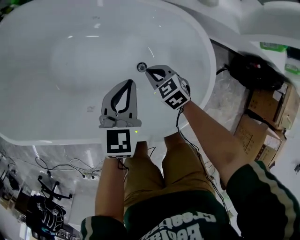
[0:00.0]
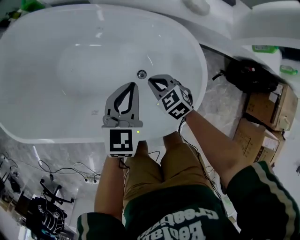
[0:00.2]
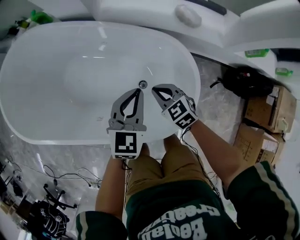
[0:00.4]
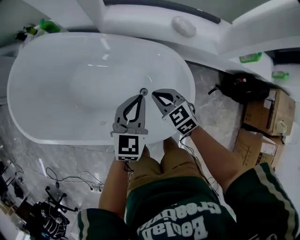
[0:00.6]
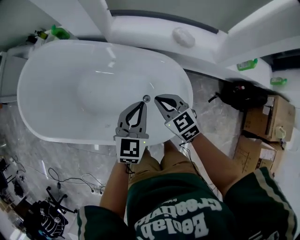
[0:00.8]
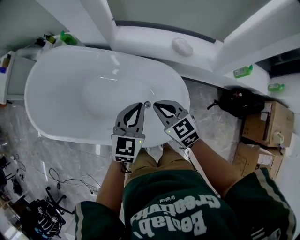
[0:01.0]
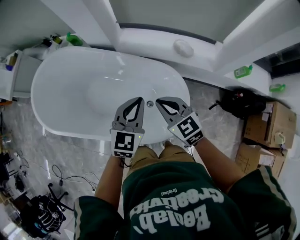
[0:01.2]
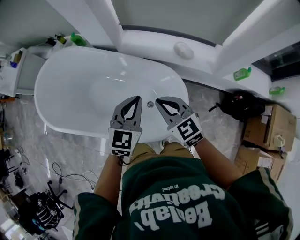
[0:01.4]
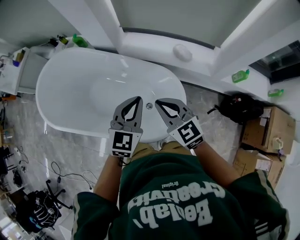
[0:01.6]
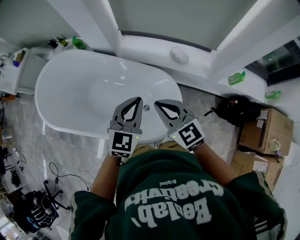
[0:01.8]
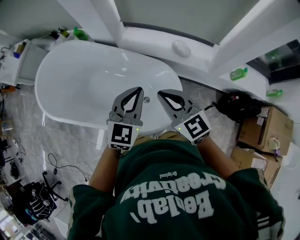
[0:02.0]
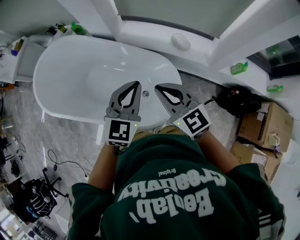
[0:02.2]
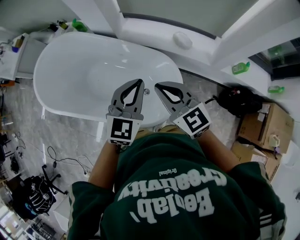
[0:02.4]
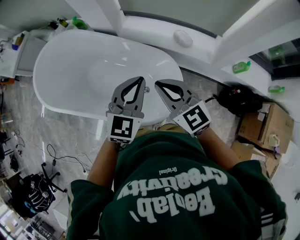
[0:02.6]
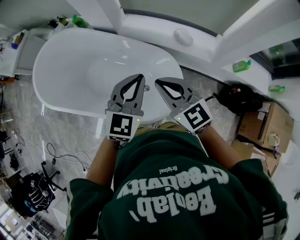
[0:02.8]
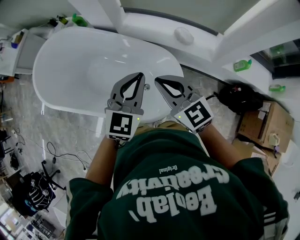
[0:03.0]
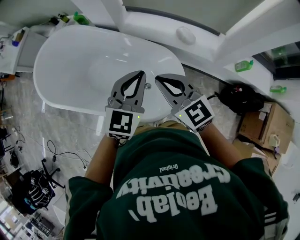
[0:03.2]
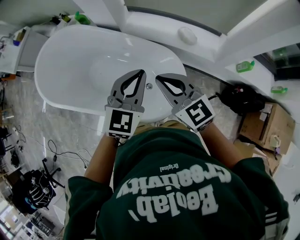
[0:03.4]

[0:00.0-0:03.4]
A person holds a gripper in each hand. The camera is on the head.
0:00.0 to 0:01.6: The grippers both shift upward by approximately 40 cm. The right gripper points its fingers approximately 30 degrees further upward.
0:01.6 to 0:03.4: The right gripper is displaced upward by some 5 cm.

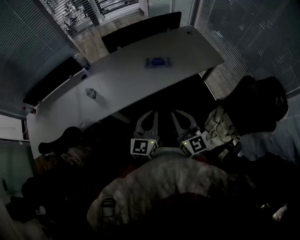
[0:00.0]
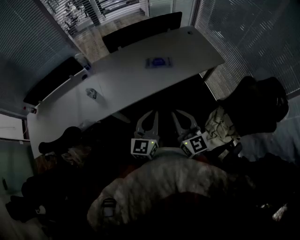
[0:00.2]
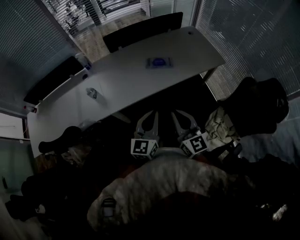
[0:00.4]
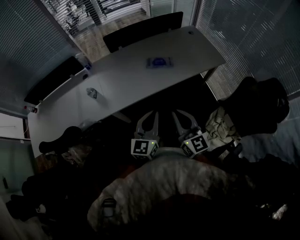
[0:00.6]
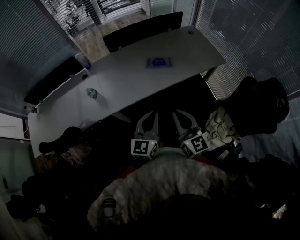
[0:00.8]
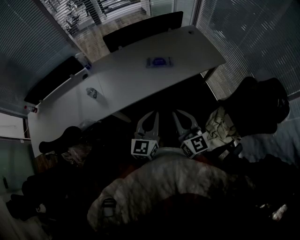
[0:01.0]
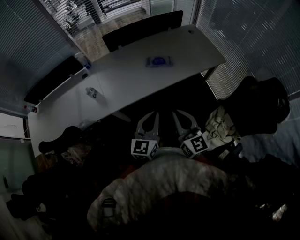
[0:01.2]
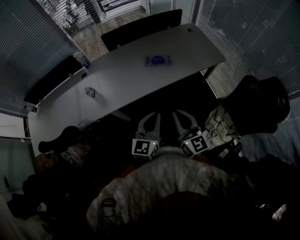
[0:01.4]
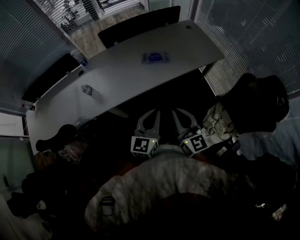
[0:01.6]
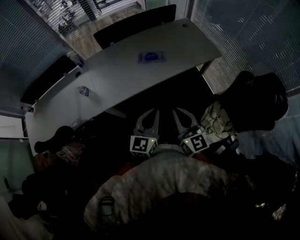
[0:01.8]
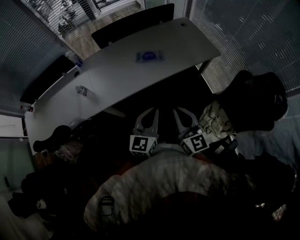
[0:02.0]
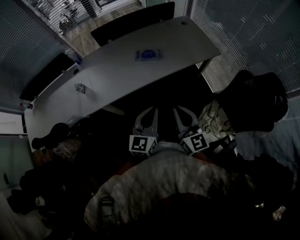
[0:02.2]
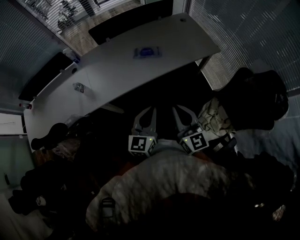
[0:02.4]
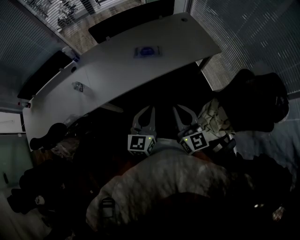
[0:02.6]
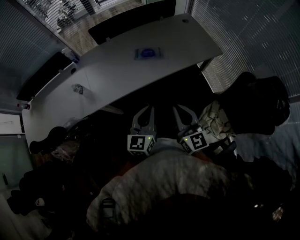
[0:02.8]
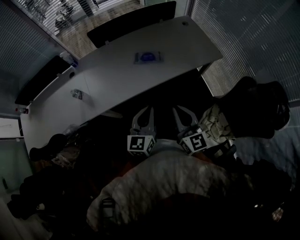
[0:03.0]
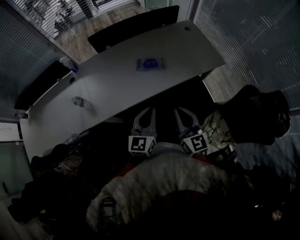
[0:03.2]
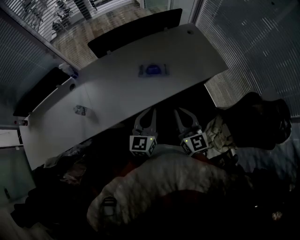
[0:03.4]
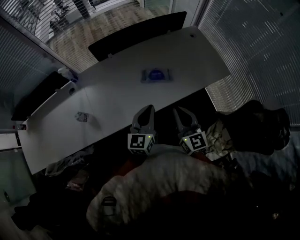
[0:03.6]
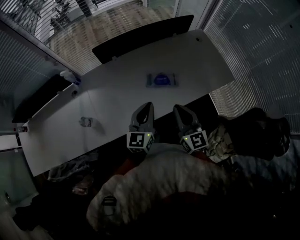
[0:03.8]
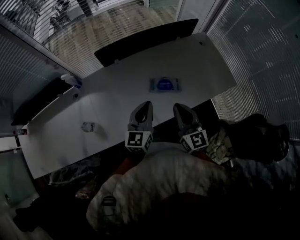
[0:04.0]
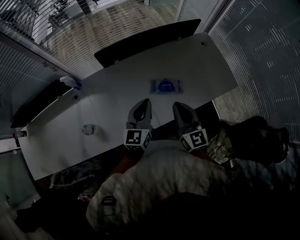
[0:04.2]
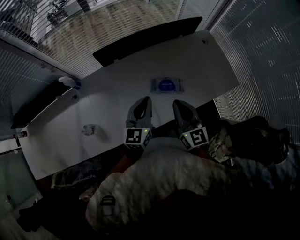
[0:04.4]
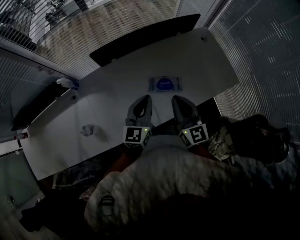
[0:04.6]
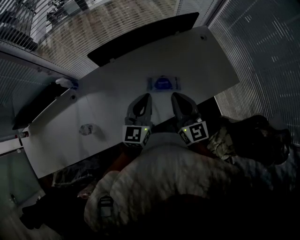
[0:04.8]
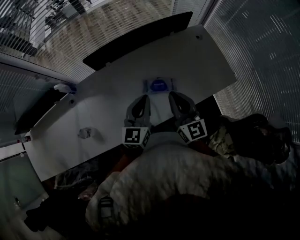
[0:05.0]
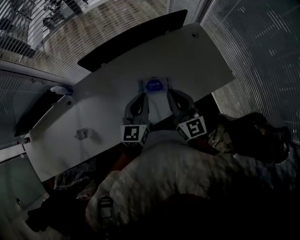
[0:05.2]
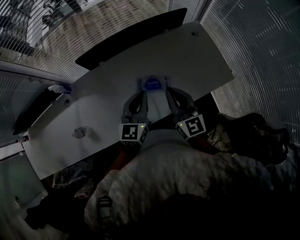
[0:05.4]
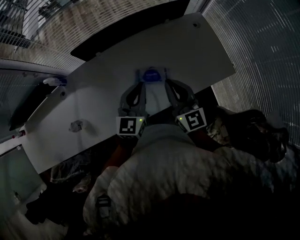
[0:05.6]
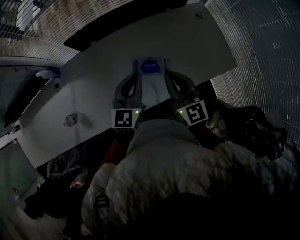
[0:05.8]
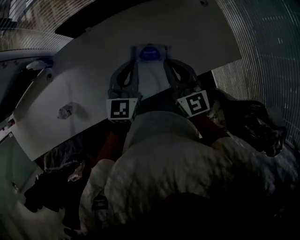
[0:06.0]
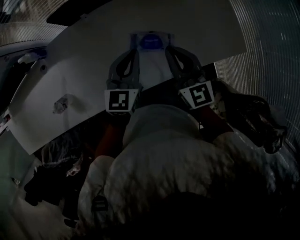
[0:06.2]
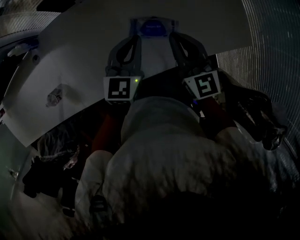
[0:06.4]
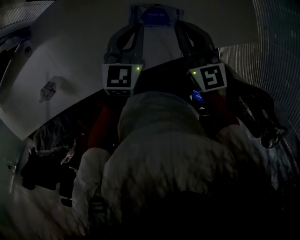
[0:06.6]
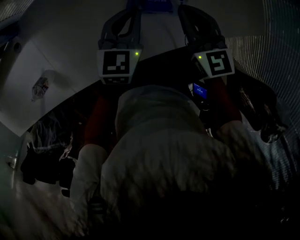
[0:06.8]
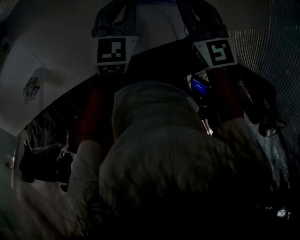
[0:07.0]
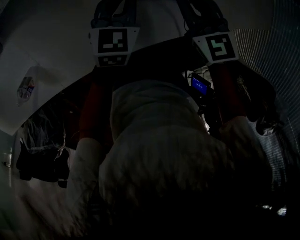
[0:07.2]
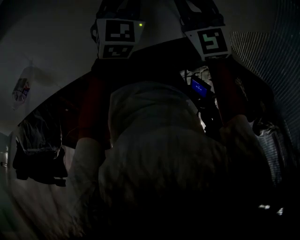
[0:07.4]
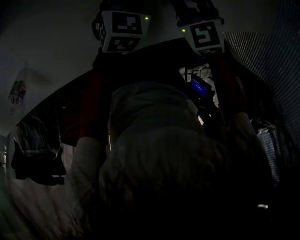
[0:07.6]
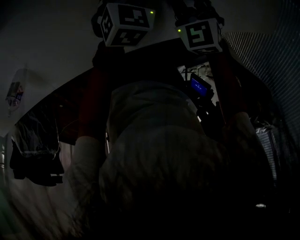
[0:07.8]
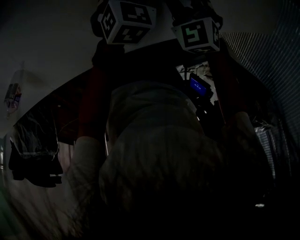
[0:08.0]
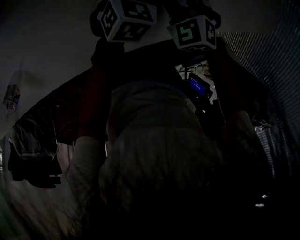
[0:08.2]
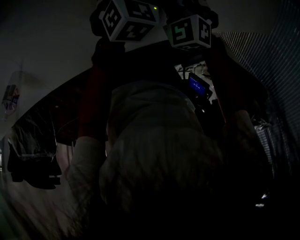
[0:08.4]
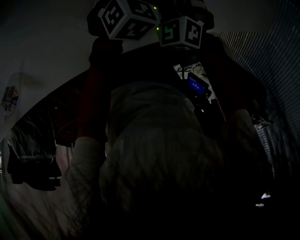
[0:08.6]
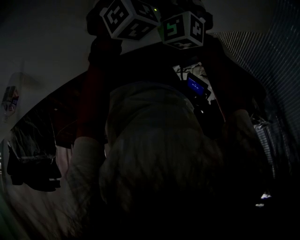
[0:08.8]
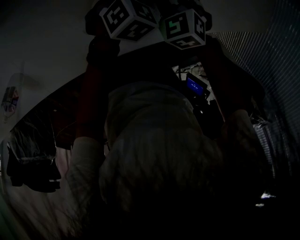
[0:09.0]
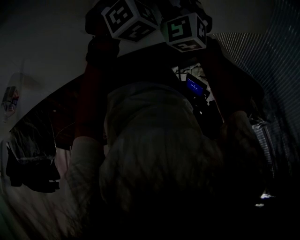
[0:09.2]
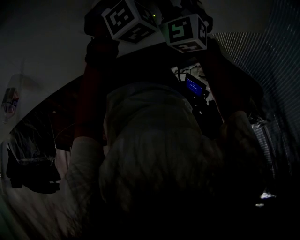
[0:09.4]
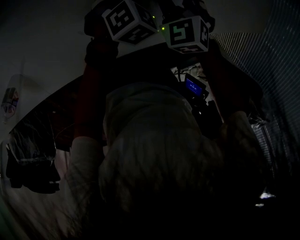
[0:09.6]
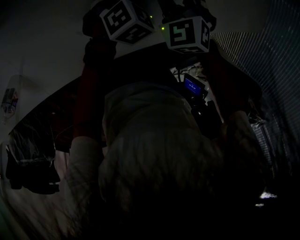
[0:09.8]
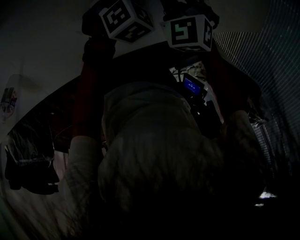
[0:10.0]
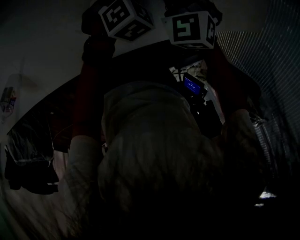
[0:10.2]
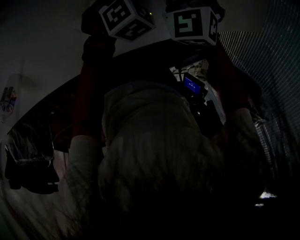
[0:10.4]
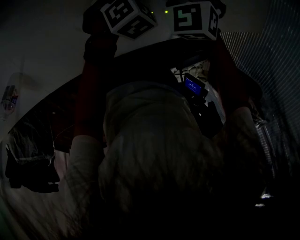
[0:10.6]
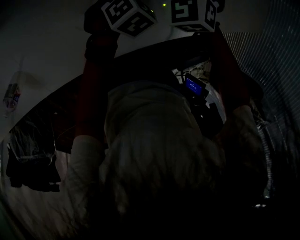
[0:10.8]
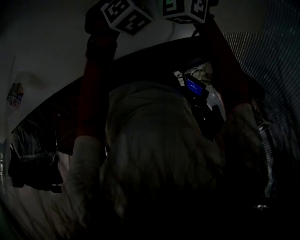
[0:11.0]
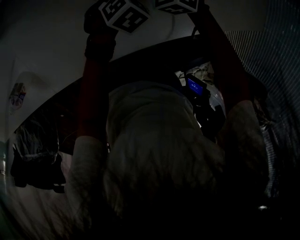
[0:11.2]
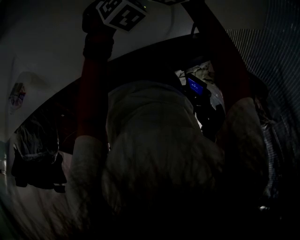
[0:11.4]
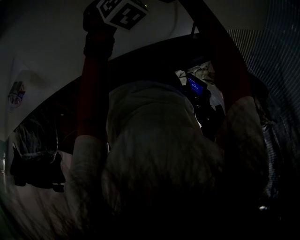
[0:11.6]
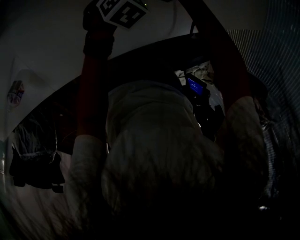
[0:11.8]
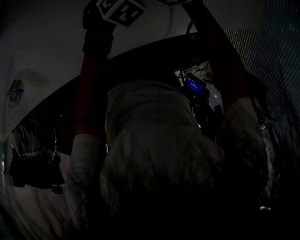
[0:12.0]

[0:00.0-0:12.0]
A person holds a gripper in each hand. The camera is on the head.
0:00.0 to 0:01.6: The grippers stay close to where they were, moving slightly.
0:01.6 to 0:03.0: The left gripper is displaced forward by roughly 5 cm; the right gripper travels forward and to the right by about 10 cm.
0:03.0 to 0:04.4: The right gripper heads forward, covering approximately 30 cm. Meanwhile the left gripper moves forward and to the left, approximately 35 cm.
0:04.4 to 0:06.0: Both grippers travel together forward and to the right, approximately 10 cm.
0:06.0 to 0:07.6: The two grippers go roughly 30 cm downward. The left gripper turns by about 30 degrees; the right gripper tips its fingers downward by some 40 degrees.
0:07.6 to 0:09.0: The right gripper travels downward by some 5 cm. Meanwhile the left gripper changes its angle by about 20 degrees.
0:09.0 to 0:10.4: The right gripper heads upward and forward, covering some 10 cm.
0:10.4 to 0:12.0: The right gripper goes approximately 5 cm forward.

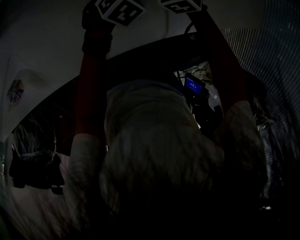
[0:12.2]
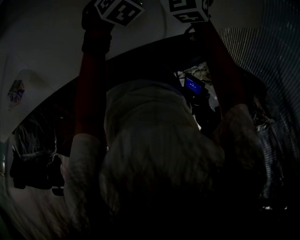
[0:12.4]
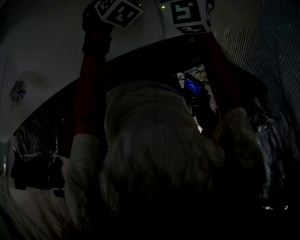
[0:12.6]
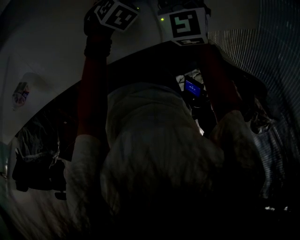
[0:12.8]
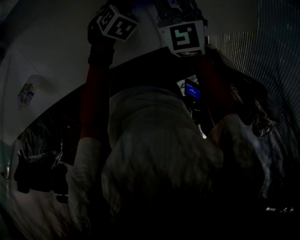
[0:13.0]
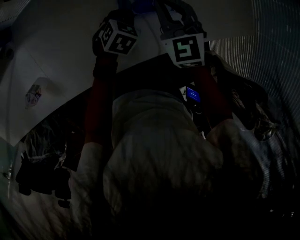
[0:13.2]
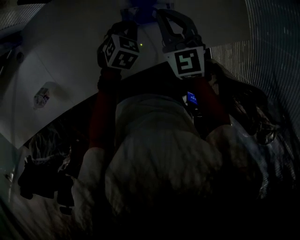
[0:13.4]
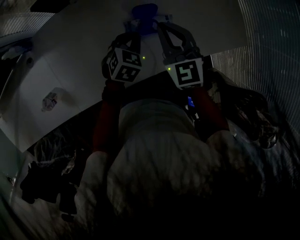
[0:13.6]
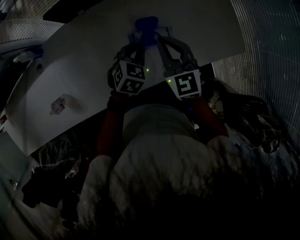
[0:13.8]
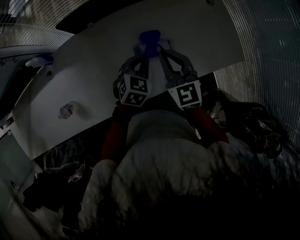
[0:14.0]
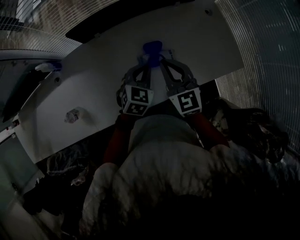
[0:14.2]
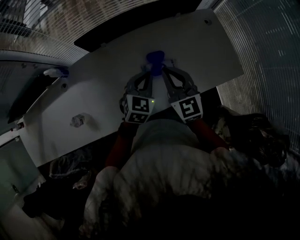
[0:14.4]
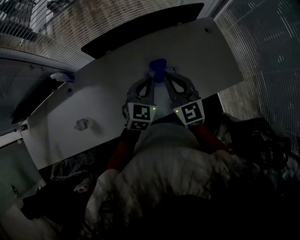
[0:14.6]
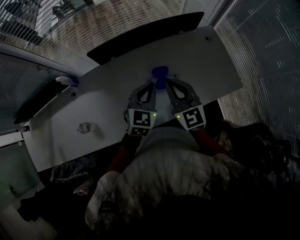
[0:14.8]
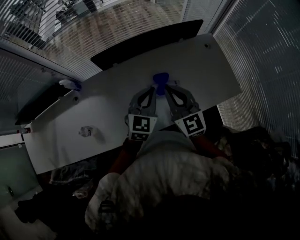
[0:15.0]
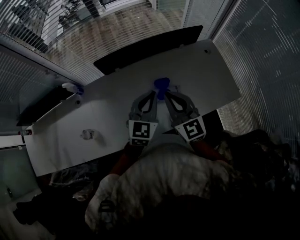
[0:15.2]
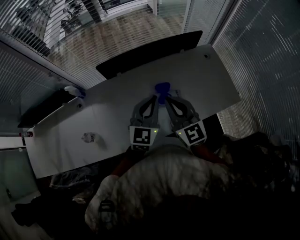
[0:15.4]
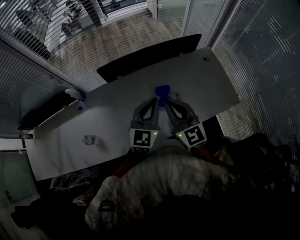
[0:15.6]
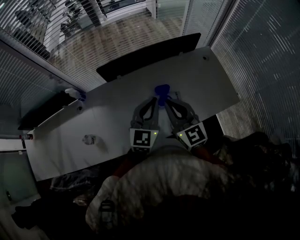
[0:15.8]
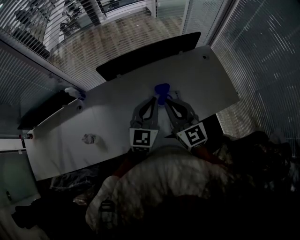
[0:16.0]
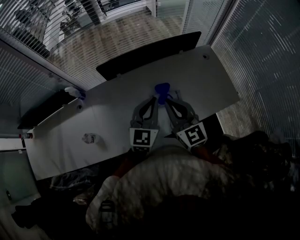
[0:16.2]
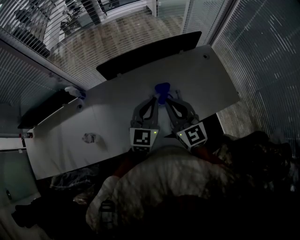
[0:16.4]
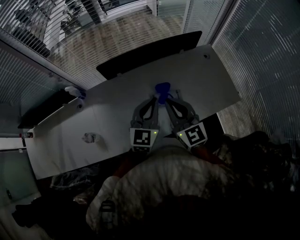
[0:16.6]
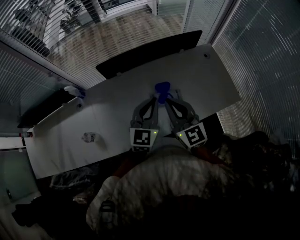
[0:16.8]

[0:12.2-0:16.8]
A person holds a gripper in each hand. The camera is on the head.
0:12.2 to 0:13.8: The left gripper travels upward by about 20 cm. The right gripper heads upward and backward, covering approximately 25 cm, and swivels approximately 30 degrees.
0:13.8 to 0:15.2: The right gripper goes approximately 15 cm upward and backward, while the left gripper shifts roughly 20 cm upward, and points its fingers about 30 degrees further upward.
0:15.2 to 0:16.8: The grippers move only a little.

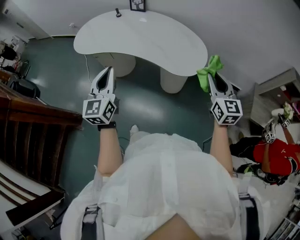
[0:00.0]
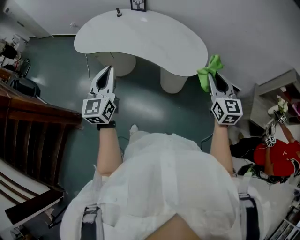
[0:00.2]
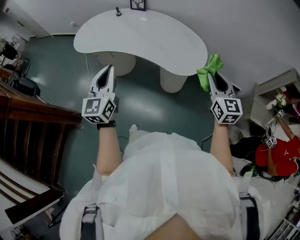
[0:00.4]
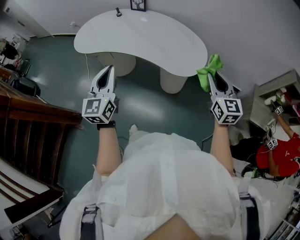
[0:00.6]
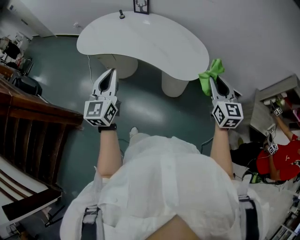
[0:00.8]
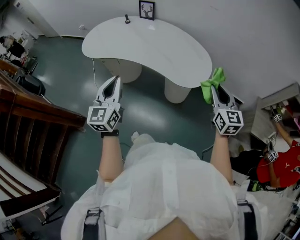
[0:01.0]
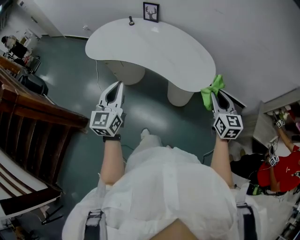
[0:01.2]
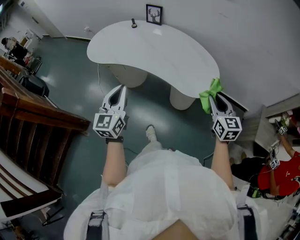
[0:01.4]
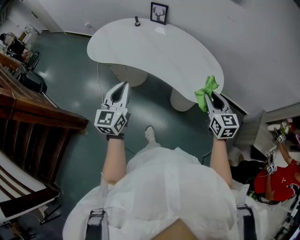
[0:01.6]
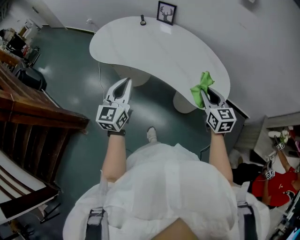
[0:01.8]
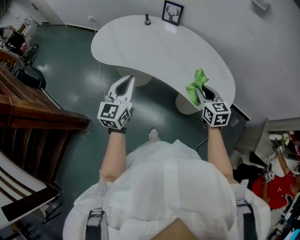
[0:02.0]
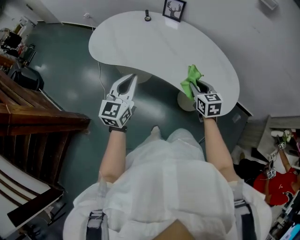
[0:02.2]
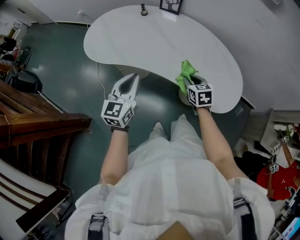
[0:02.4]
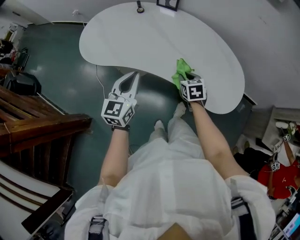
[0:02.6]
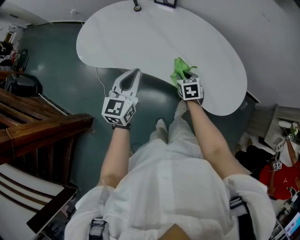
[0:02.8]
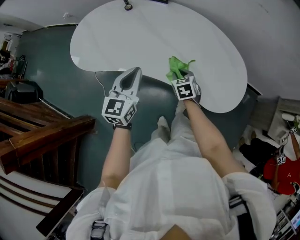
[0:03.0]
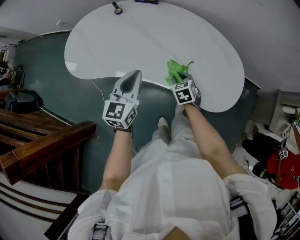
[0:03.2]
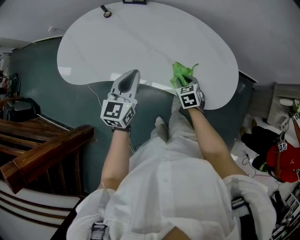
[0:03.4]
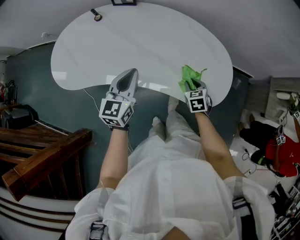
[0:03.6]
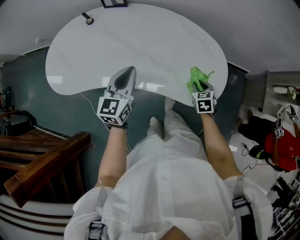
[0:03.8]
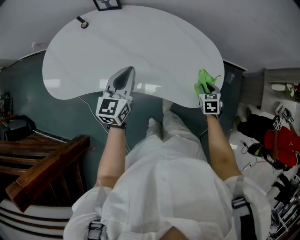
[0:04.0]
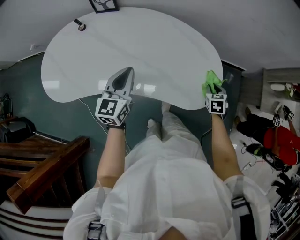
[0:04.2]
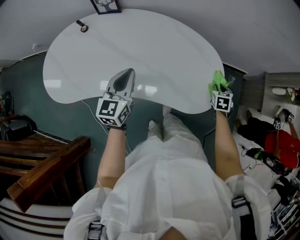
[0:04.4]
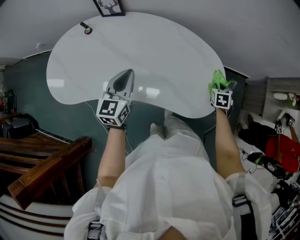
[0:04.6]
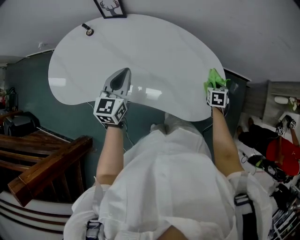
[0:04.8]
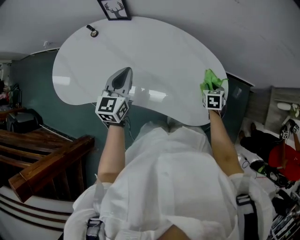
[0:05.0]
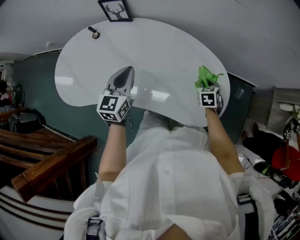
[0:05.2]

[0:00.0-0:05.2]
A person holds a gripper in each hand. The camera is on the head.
0:00.0 to 0:01.8: The two grippers go approximately 20 cm forward and to the left.
0:01.8 to 0:03.4: The left gripper travels forward and downward by approximately 25 cm, and swivels approximately 20 degrees. The right gripper goes some 30 cm downward and forward, and changes its angle by approximately 30 degrees.
0:03.4 to 0:05.2: The right gripper travels to the right and forward by approximately 20 cm. The left gripper moves forward, about 15 cm.
